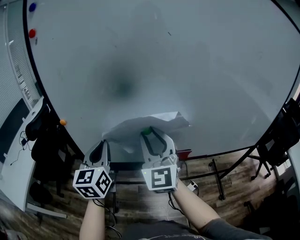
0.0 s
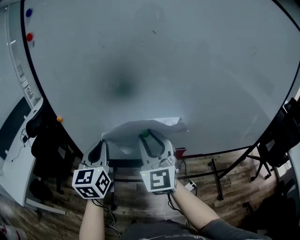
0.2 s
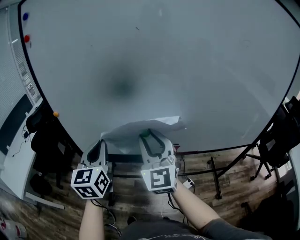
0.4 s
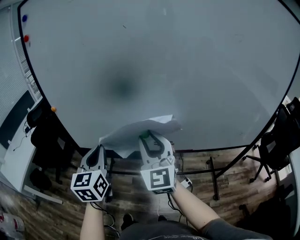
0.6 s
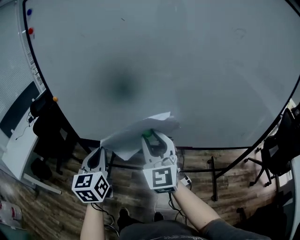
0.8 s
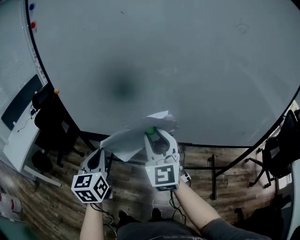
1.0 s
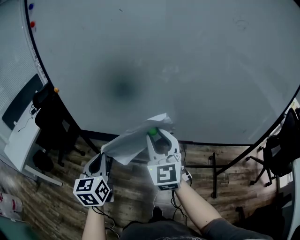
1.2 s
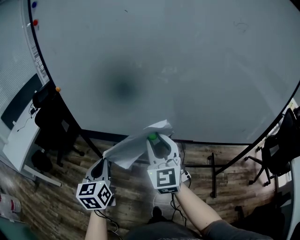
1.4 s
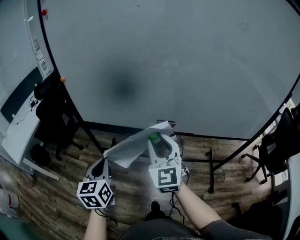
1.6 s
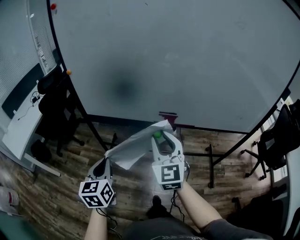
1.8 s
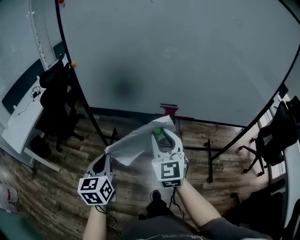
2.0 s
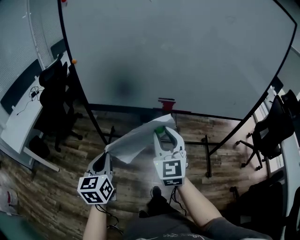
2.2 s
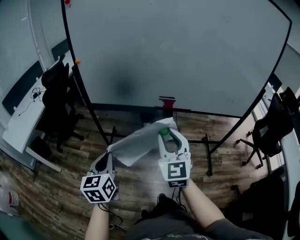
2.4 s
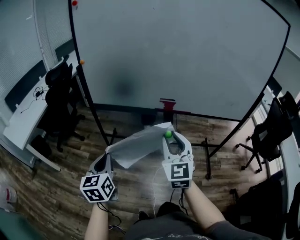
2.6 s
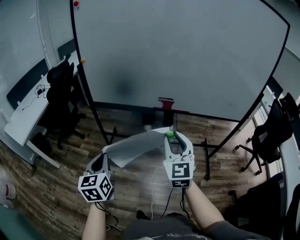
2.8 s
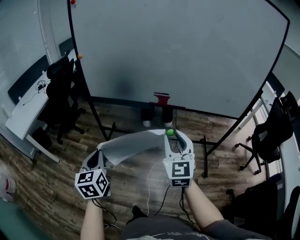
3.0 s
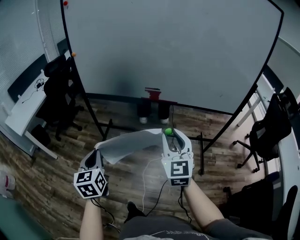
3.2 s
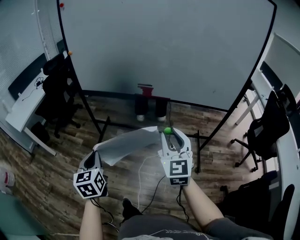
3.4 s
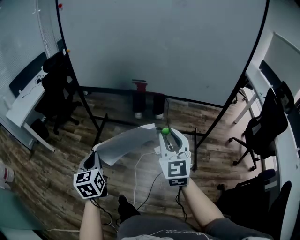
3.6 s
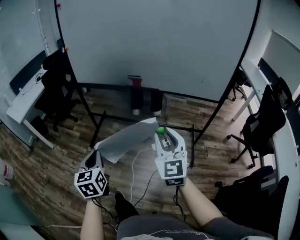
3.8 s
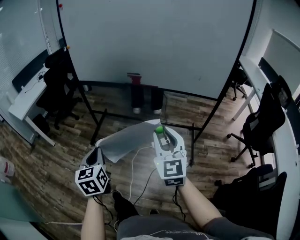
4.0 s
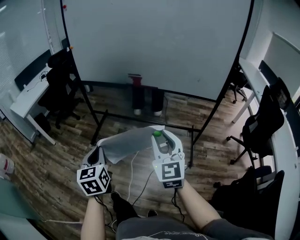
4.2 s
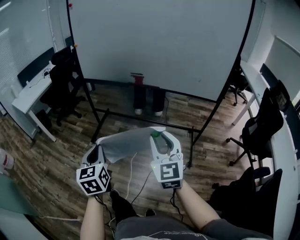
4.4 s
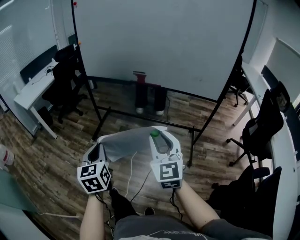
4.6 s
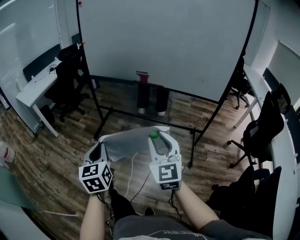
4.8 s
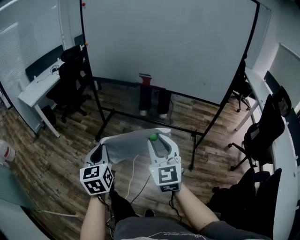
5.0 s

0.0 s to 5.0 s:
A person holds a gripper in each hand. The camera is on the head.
0.0 to 1.6 s: The right gripper travels backward, to the right and downward by some 20 cm; the left gripper heads backward and downward, covering some 25 cm, and changes its angle by some 20 degrees.
1.6 to 3.4 s: The left gripper is displaced backward by roughly 25 cm, while the right gripper travels backward and to the right by about 30 cm.
3.4 to 5.0 s: The grippers both shift backward by roughly 20 cm.

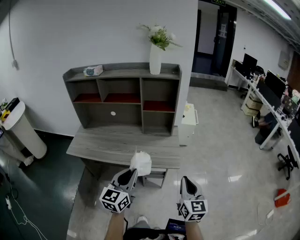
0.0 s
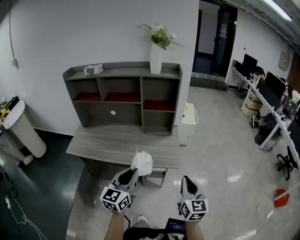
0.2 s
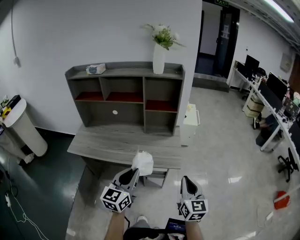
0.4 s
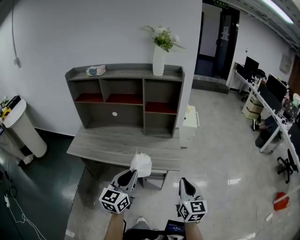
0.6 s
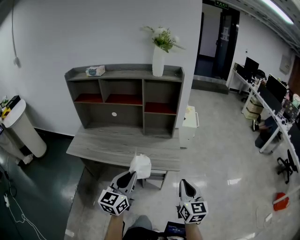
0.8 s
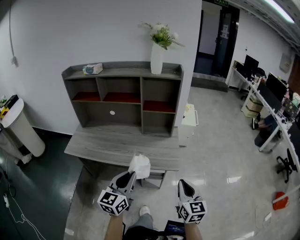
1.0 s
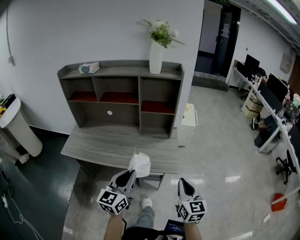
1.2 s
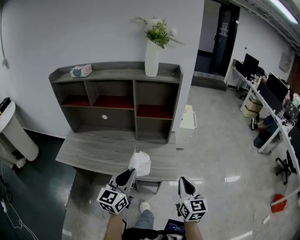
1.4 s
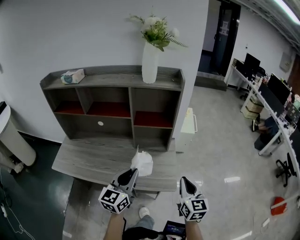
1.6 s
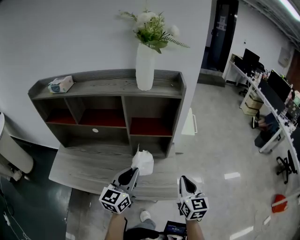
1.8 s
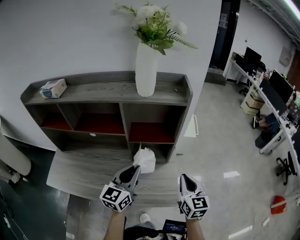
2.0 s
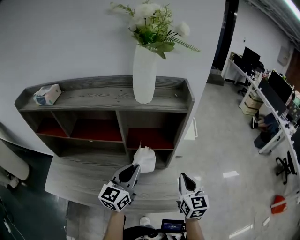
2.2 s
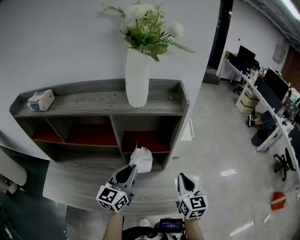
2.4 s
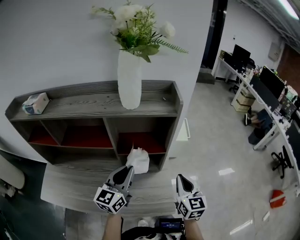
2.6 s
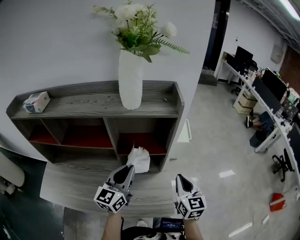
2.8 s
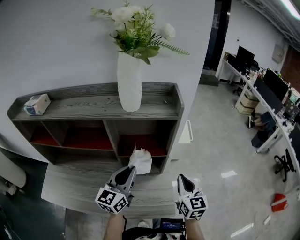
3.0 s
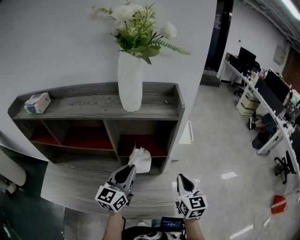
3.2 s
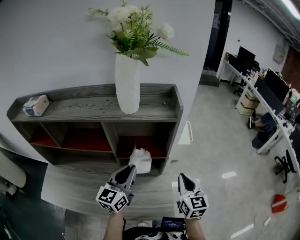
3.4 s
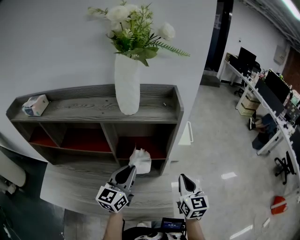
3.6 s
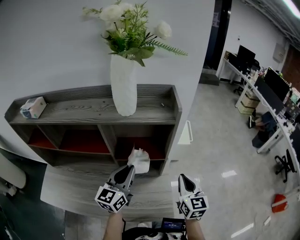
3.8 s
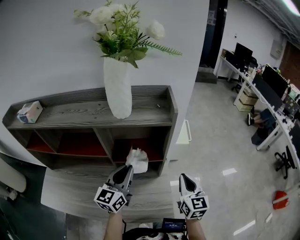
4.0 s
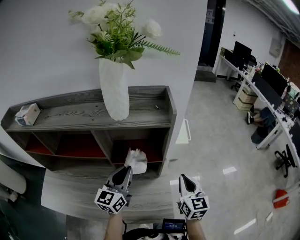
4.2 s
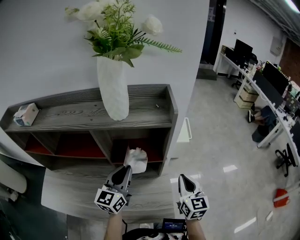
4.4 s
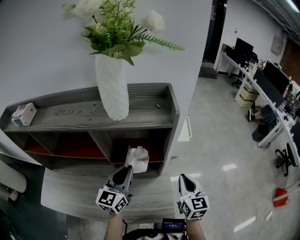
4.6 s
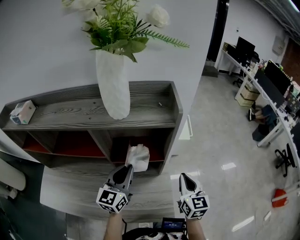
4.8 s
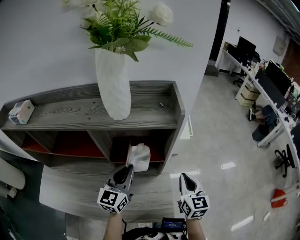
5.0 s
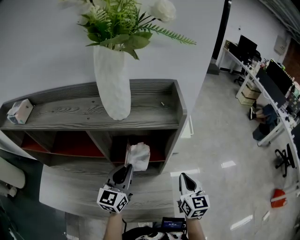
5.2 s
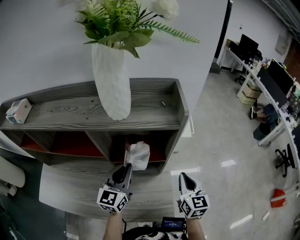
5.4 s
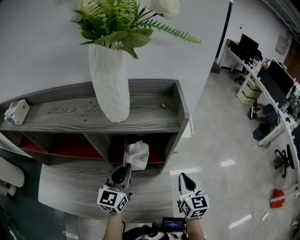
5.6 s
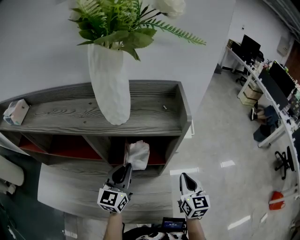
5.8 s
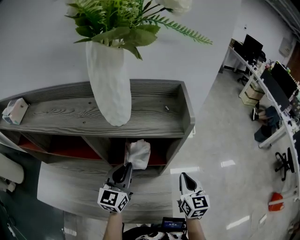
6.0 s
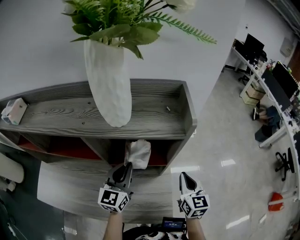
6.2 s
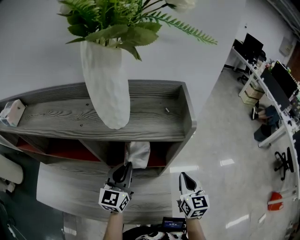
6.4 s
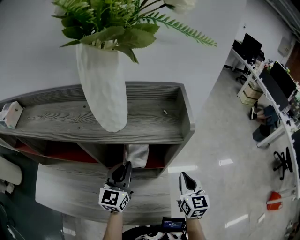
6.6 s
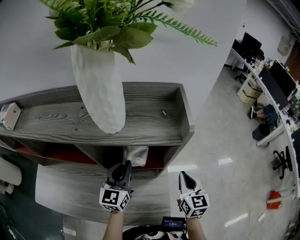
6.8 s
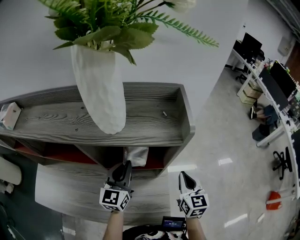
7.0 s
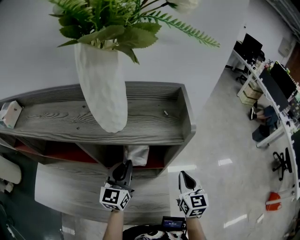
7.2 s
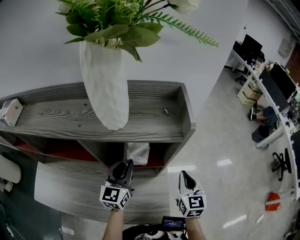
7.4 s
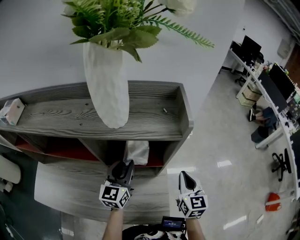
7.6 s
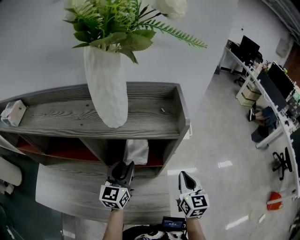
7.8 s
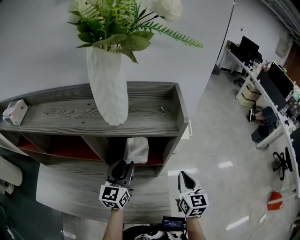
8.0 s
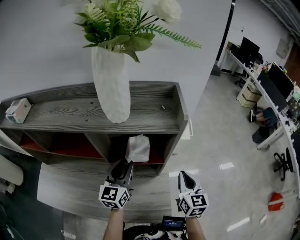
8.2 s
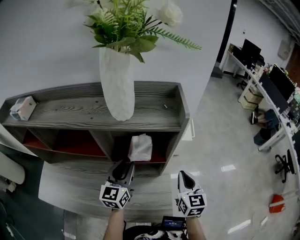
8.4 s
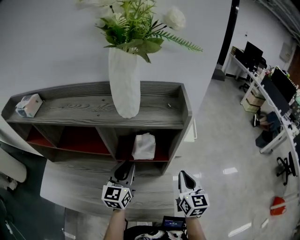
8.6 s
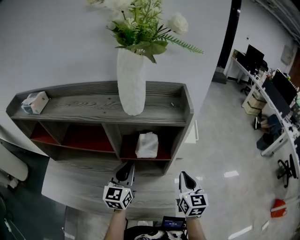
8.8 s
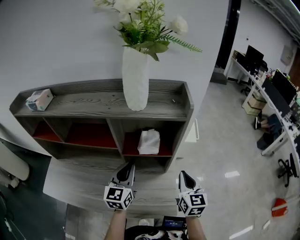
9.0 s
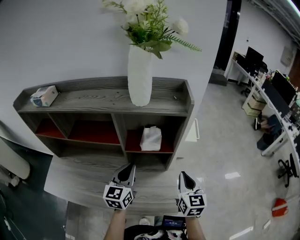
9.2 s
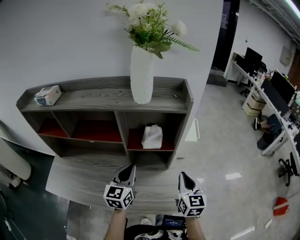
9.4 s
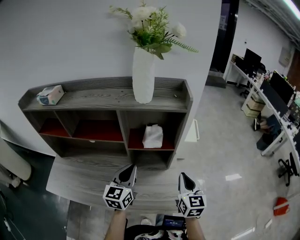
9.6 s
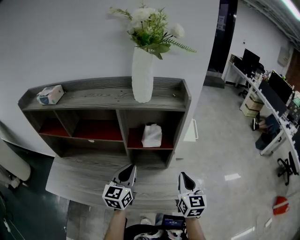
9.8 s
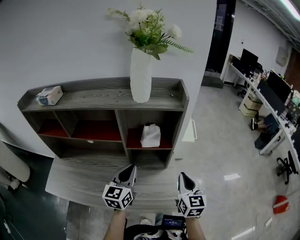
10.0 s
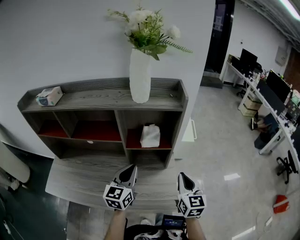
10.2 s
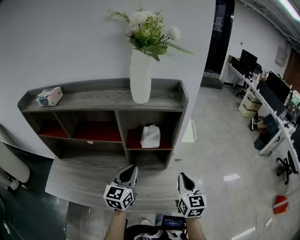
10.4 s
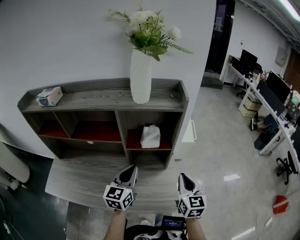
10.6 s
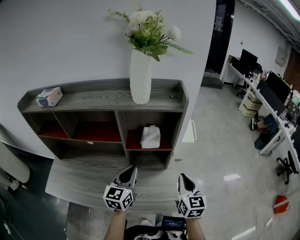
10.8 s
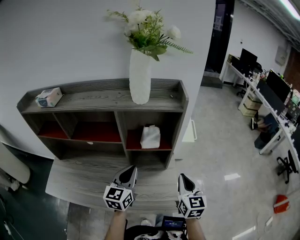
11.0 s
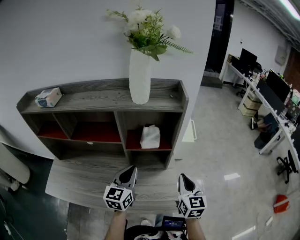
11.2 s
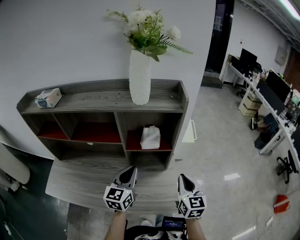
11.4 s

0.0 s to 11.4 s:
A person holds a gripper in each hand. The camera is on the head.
0.0 to 1.4 s: Both grippers move forward, roughly 10 cm.
1.4 to 2.8 s: The grippers both shift forward by roughly 30 cm.
2.8 to 4.2 s: The right gripper shifts by some 5 cm.
4.2 to 5.6 s: There are only small adjustments of the grippers.
5.6 to 7.2 s: The grippers make only small movements.
7.2 to 8.6 s: The right gripper changes place by some 5 cm; the left gripper moves about 5 cm.
8.6 to 10.0 s: The grippers both shift backward by about 10 cm.
10.0 to 11.4 s: Neither gripper changes place.

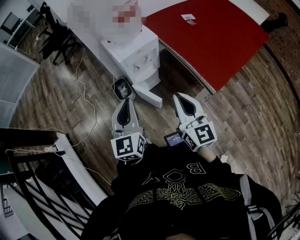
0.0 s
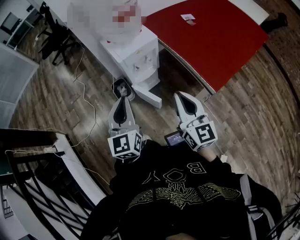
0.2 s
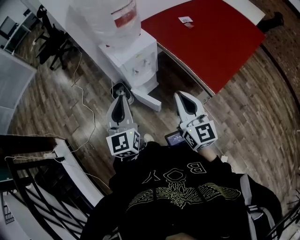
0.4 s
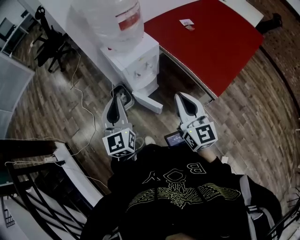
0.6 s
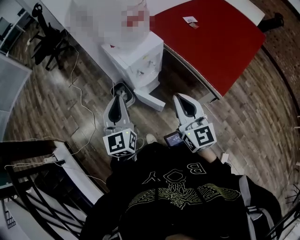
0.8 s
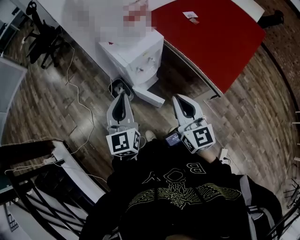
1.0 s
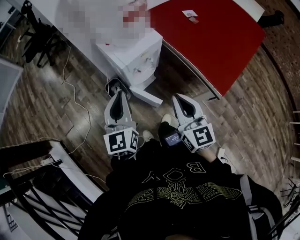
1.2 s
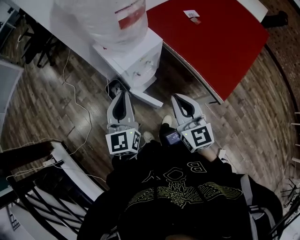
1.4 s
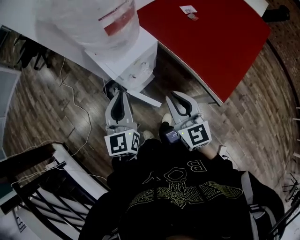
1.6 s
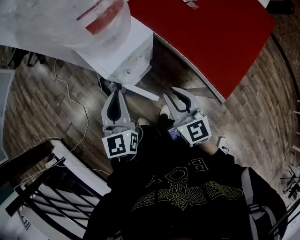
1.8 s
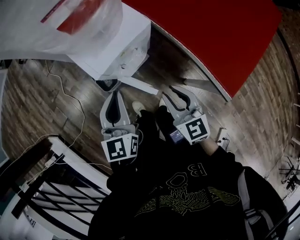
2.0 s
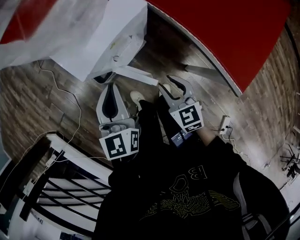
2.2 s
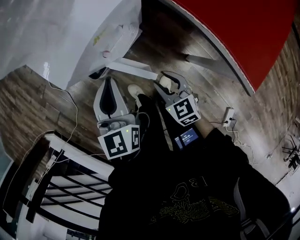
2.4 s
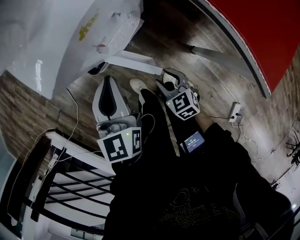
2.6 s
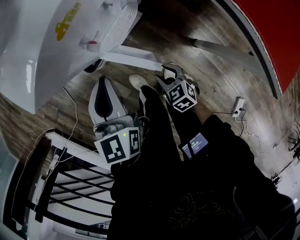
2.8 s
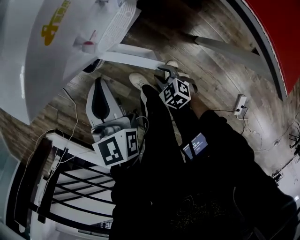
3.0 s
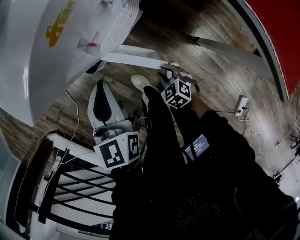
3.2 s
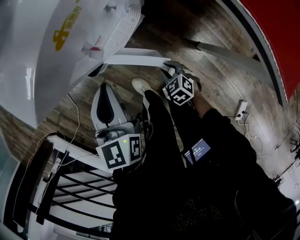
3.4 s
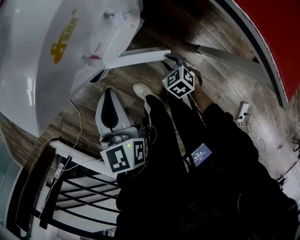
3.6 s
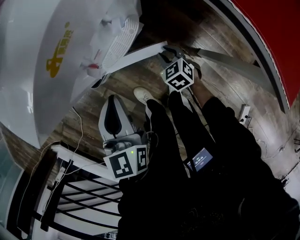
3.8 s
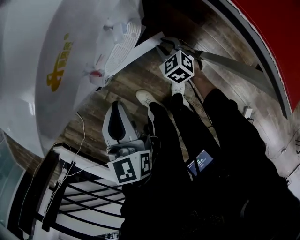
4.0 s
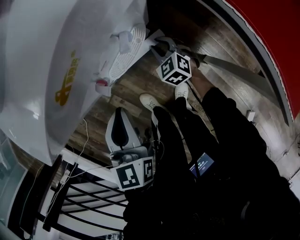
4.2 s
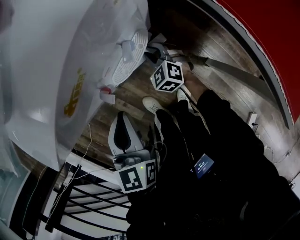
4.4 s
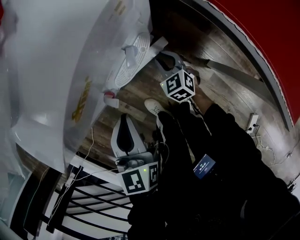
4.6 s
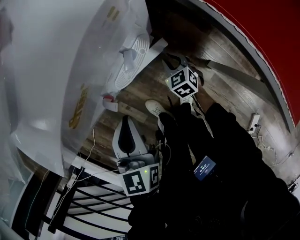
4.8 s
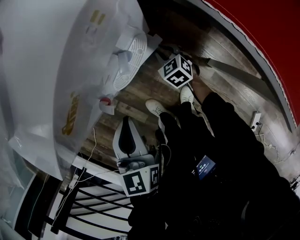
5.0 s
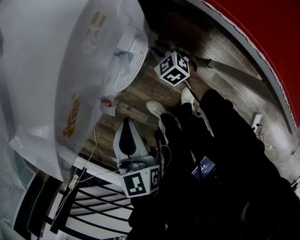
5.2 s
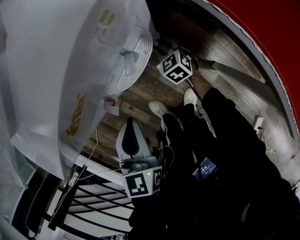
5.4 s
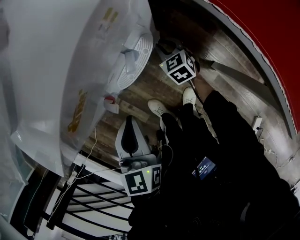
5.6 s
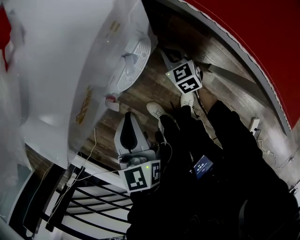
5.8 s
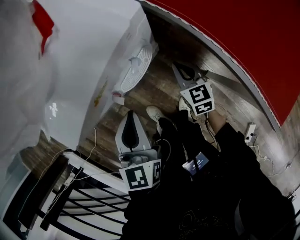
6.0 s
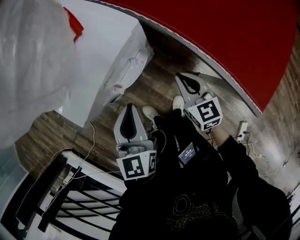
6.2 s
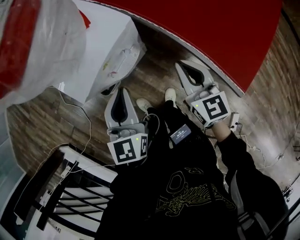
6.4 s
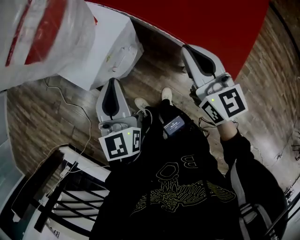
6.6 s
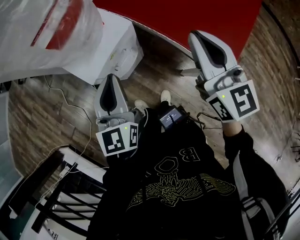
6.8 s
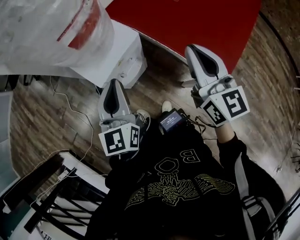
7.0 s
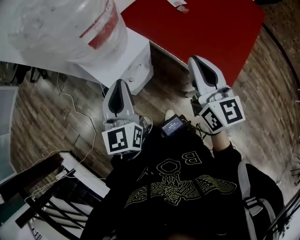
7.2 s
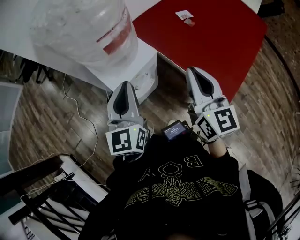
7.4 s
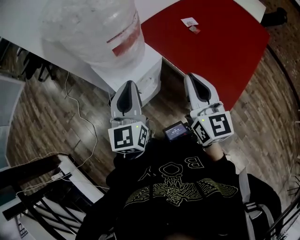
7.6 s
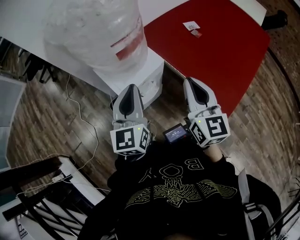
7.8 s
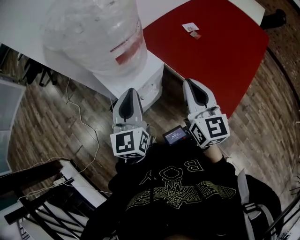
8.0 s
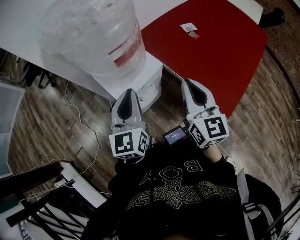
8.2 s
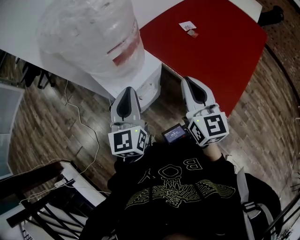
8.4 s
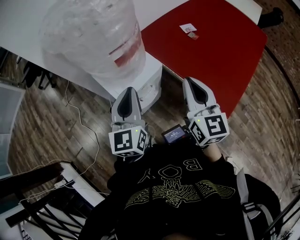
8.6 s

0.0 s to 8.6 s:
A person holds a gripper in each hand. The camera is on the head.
0.0 to 1.4 s: Both grippers move forward, approximately 15 cm.
1.4 to 2.8 s: The right gripper travels downward by roughly 60 cm, angles its fingers downward, by about 40 degrees, and opens its fingers. Meanwhile the left gripper shifts about 35 cm downward, and turns by some 20 degrees.
2.8 to 4.4 s: The right gripper moves forward, about 25 cm, and changes its angle by some 30 degrees.
4.4 to 5.8 s: The right gripper shifts approximately 5 cm to the right, travels backward and back again, about 5 cm each way, changes its angle by roughly 30 degrees, and closes up.
5.8 to 7.2 s: The right gripper shifts approximately 70 cm upward, and angles its fingers upward, by some 40 degrees. The left gripper is displaced upward by about 40 cm, and swivels approximately 20 degrees.
7.2 to 8.6 s: The right gripper moves some 5 cm.
